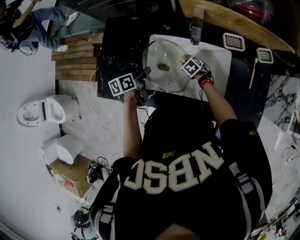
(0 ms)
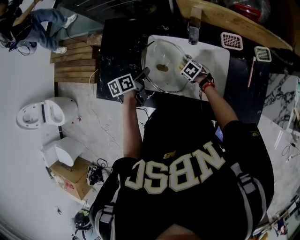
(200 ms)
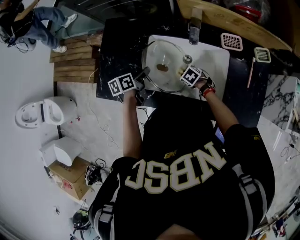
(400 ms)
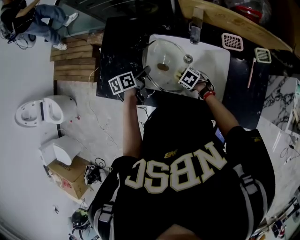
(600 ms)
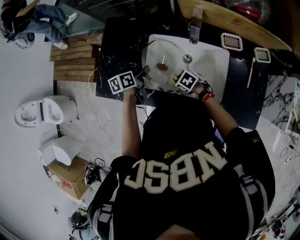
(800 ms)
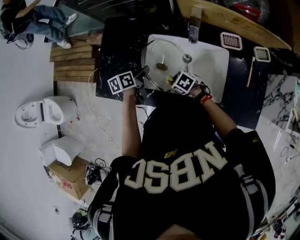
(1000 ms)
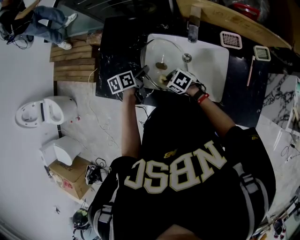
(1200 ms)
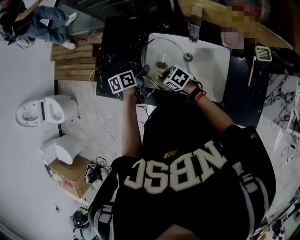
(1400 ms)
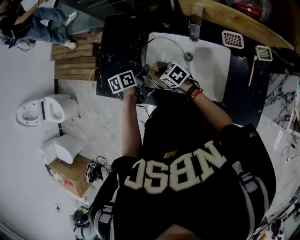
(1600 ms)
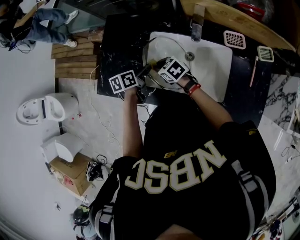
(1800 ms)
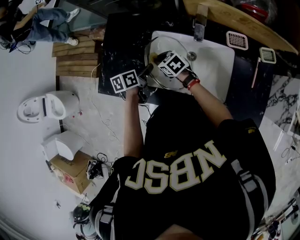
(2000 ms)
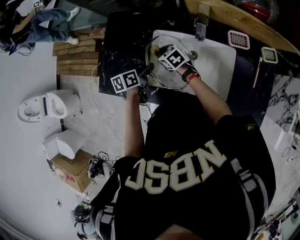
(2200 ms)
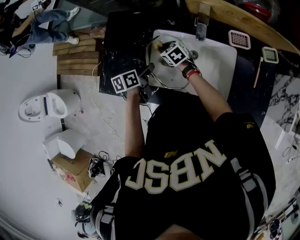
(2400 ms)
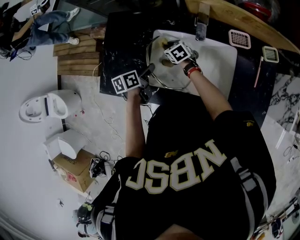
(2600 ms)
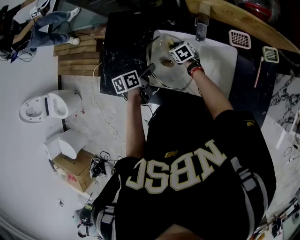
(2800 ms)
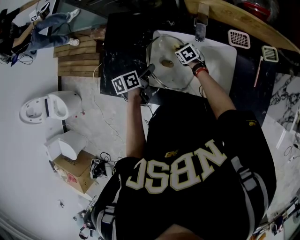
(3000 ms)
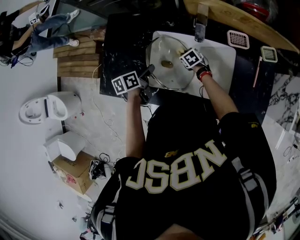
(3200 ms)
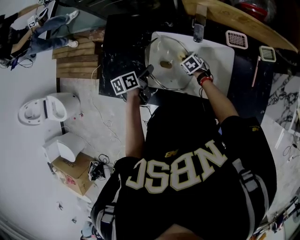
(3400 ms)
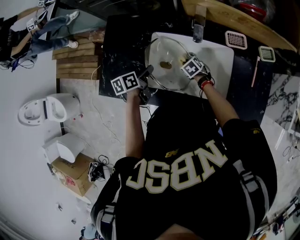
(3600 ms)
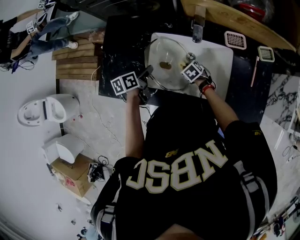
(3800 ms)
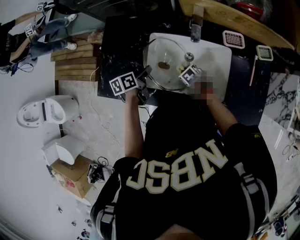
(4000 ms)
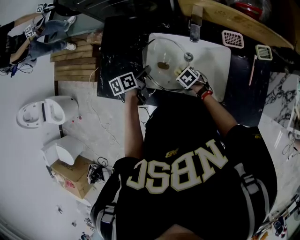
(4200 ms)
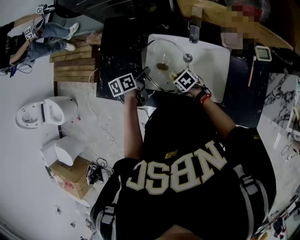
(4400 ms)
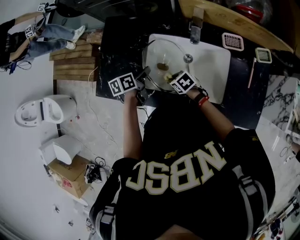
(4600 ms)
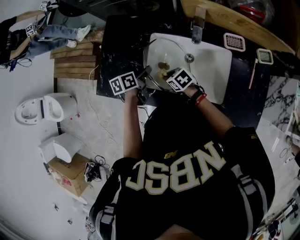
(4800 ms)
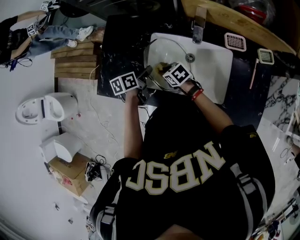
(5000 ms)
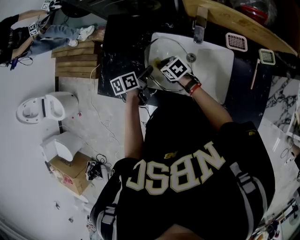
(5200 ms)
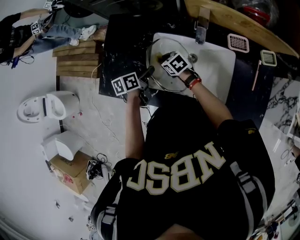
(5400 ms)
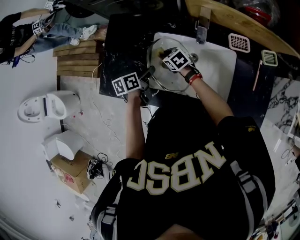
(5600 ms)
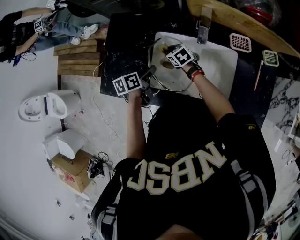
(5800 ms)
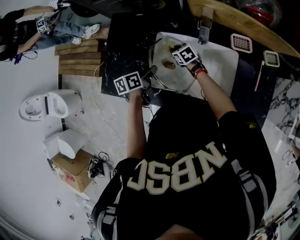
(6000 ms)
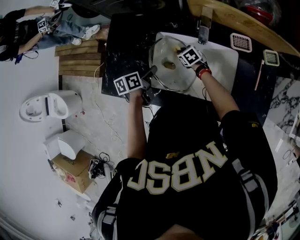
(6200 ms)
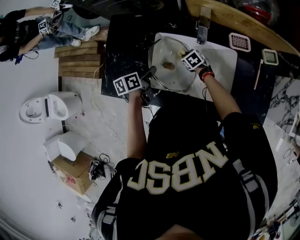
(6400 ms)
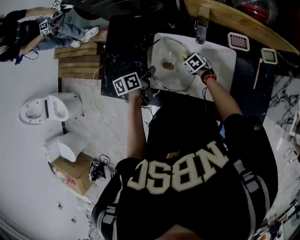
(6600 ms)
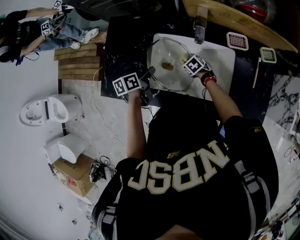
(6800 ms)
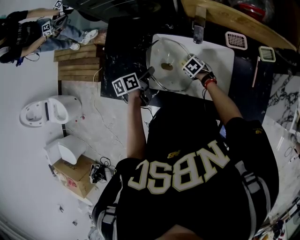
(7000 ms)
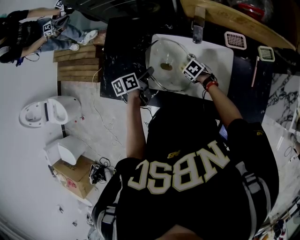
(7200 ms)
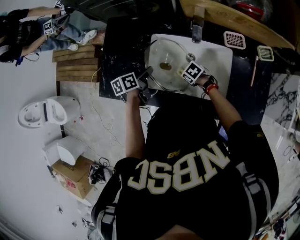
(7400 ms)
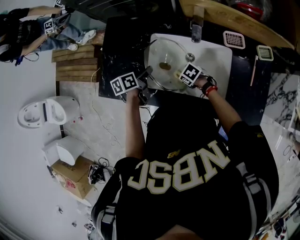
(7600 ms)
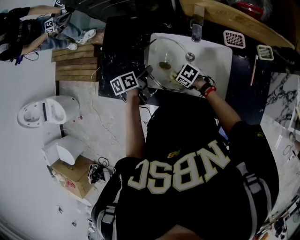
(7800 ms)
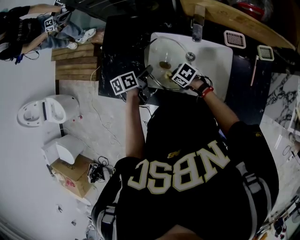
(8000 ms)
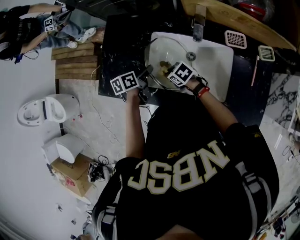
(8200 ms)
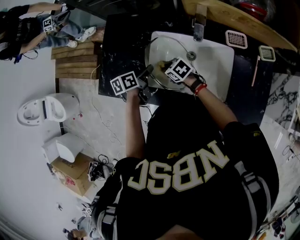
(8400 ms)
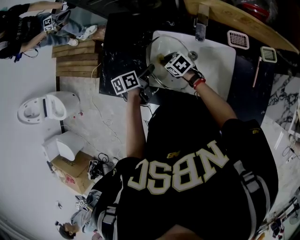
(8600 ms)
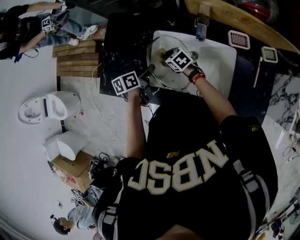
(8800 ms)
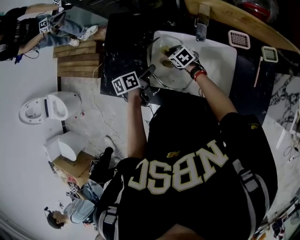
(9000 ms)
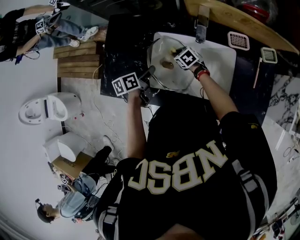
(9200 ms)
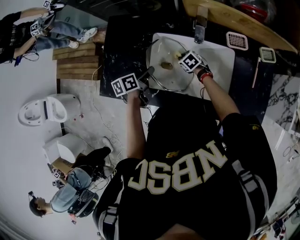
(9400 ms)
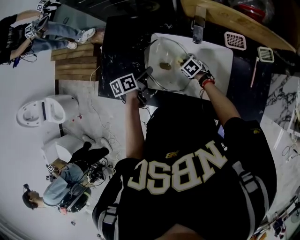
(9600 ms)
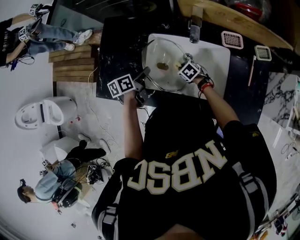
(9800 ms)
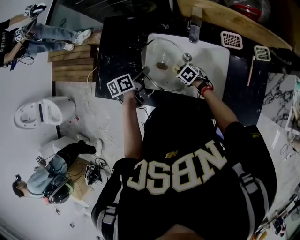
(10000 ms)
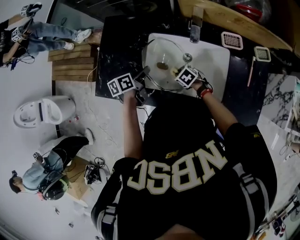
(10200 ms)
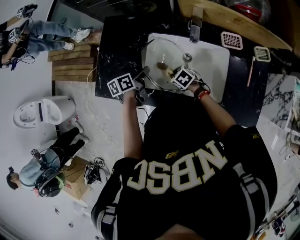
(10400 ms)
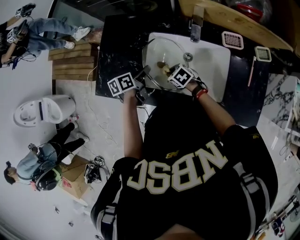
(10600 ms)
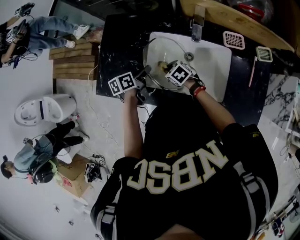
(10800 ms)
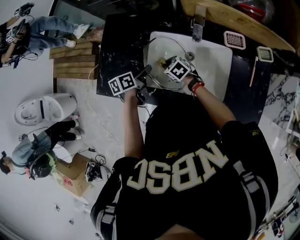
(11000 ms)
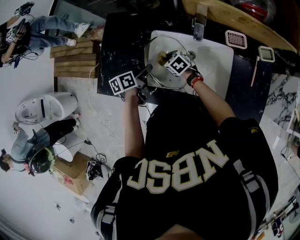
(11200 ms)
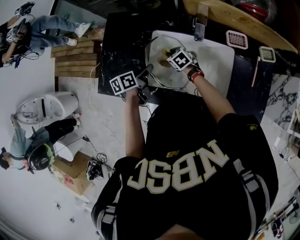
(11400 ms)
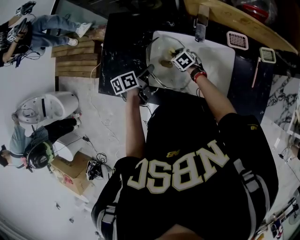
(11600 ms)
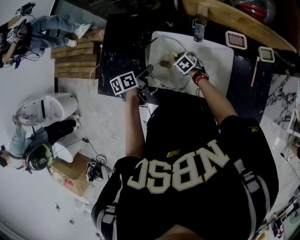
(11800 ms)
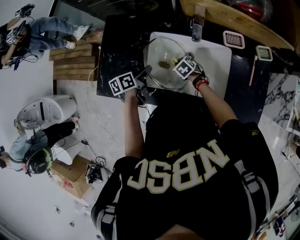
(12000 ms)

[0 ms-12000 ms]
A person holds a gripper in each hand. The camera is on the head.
0 ms to 1600 ms: The right gripper shifts by some 20 cm, and rotates approximately 30 degrees.
1600 ms to 3000 ms: The right gripper heads to the right, forward and downward, covering some 20 cm, and rotates some 20 degrees.
3000 ms to 4400 ms: The right gripper heads backward, covering about 15 cm.
4400 ms to 6000 ms: The right gripper goes about 15 cm forward.
6000 ms to 7600 ms: The right gripper changes place by about 15 cm, and rotates approximately 30 degrees.
7600 ms to 9000 ms: The right gripper moves approximately 15 cm, and rotates approximately 20 degrees.
9000 ms to 10400 ms: The right gripper is displaced backward by some 15 cm.
10400 ms to 12000 ms: The right gripper moves forward, roughly 5 cm.

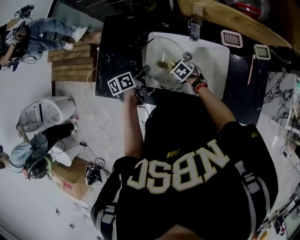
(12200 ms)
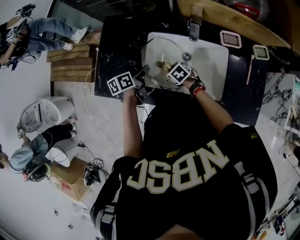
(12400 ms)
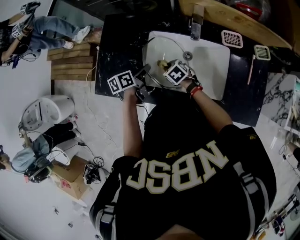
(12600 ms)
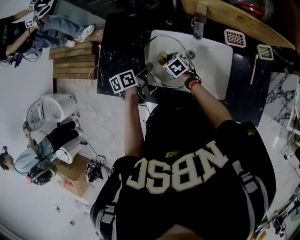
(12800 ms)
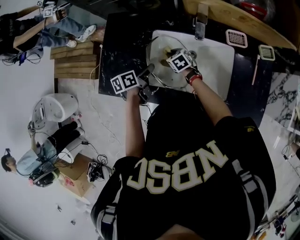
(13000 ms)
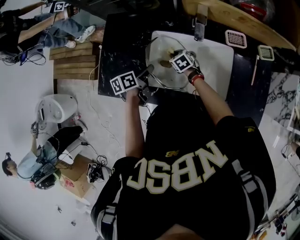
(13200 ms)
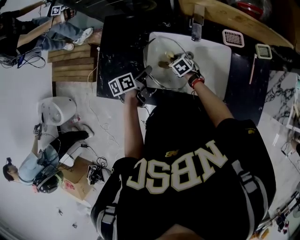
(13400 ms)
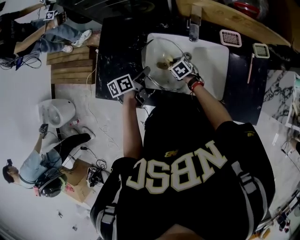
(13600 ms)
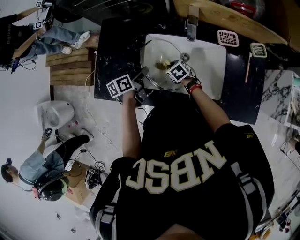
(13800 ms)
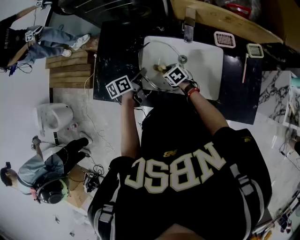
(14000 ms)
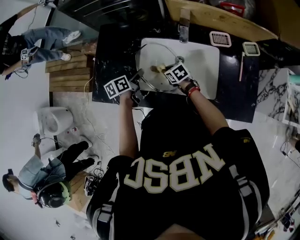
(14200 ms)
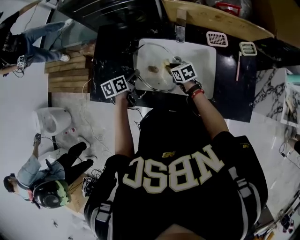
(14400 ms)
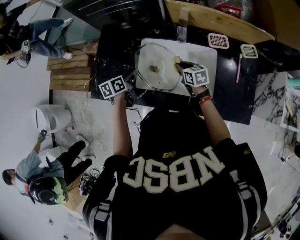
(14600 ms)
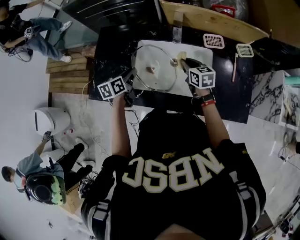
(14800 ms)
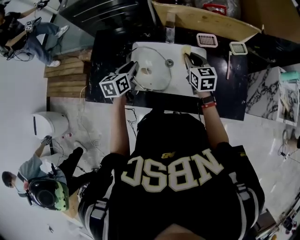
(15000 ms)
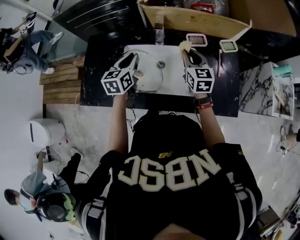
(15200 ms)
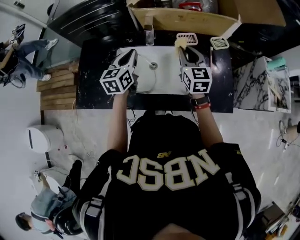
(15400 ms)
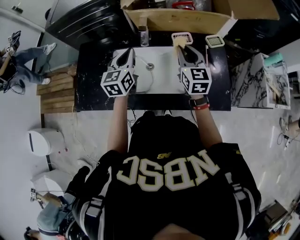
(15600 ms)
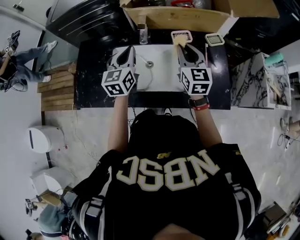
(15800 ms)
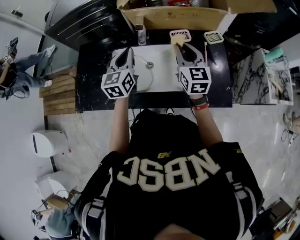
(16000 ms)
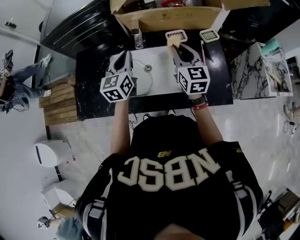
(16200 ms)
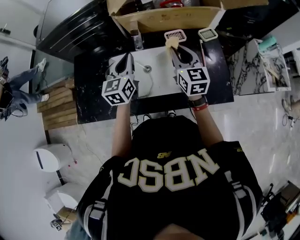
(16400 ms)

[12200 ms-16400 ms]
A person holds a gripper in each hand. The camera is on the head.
13600 ms to 15000 ms: The left gripper moves upward and to the right, approximately 10 cm, and swivels approximately 30 degrees, while the right gripper heads upward and to the right, covering roughly 30 cm, and angles its fingers upward, by approximately 30 degrees.
15000 ms to 16400 ms: The left gripper shifts some 15 cm to the right and upward, rotates some 30 degrees, and closes. The right gripper is displaced upward and to the right by approximately 15 cm.

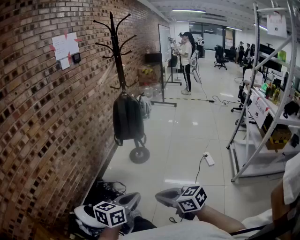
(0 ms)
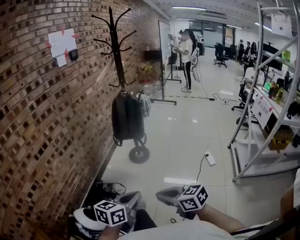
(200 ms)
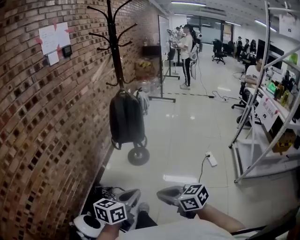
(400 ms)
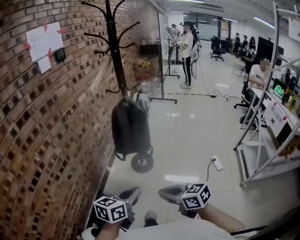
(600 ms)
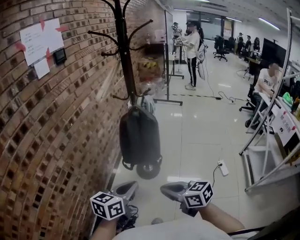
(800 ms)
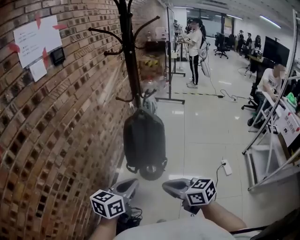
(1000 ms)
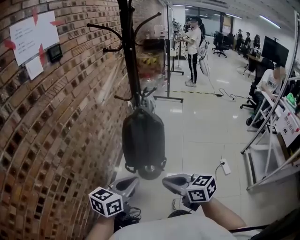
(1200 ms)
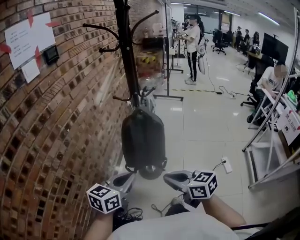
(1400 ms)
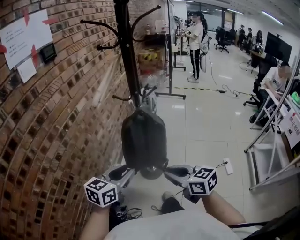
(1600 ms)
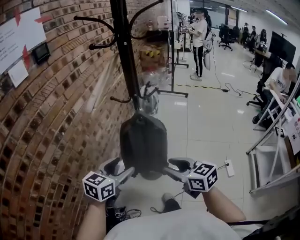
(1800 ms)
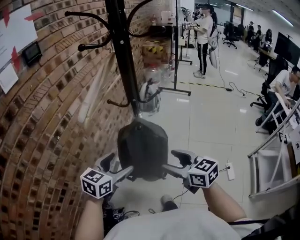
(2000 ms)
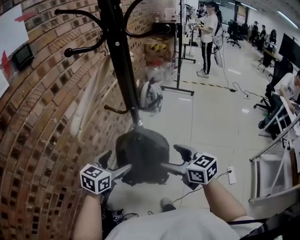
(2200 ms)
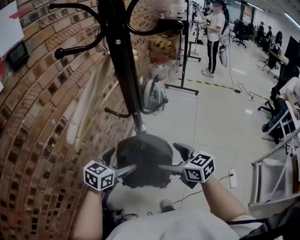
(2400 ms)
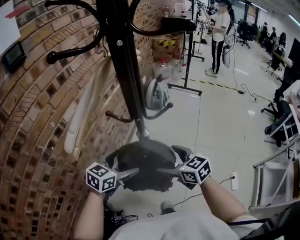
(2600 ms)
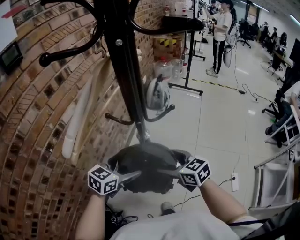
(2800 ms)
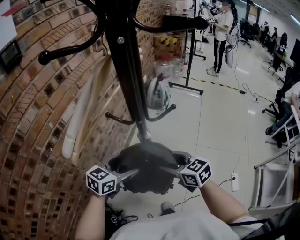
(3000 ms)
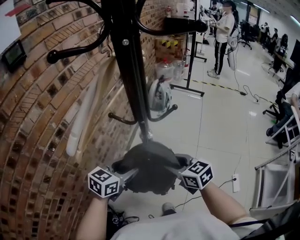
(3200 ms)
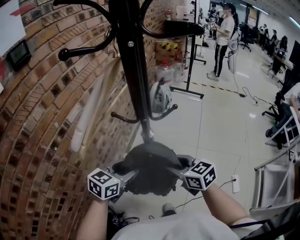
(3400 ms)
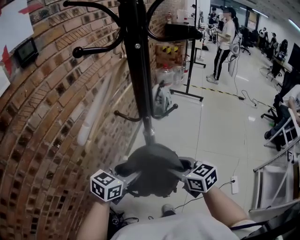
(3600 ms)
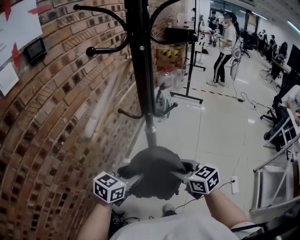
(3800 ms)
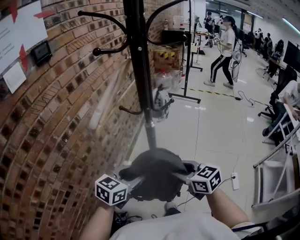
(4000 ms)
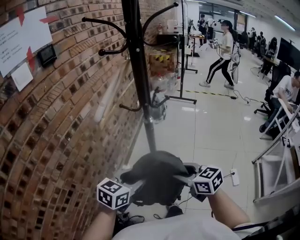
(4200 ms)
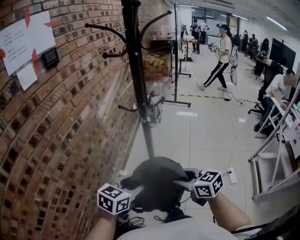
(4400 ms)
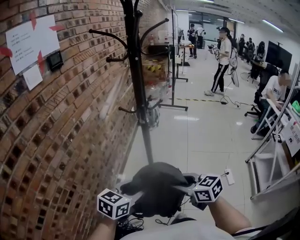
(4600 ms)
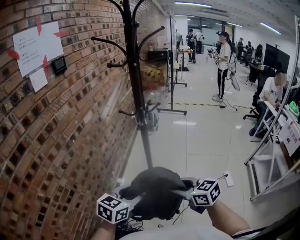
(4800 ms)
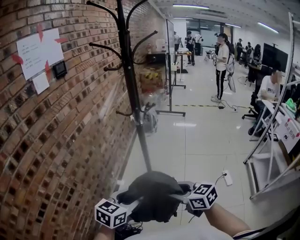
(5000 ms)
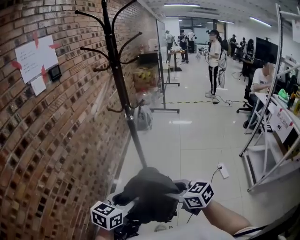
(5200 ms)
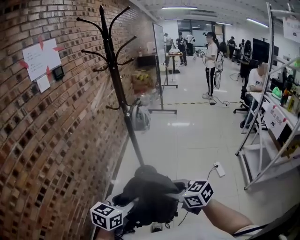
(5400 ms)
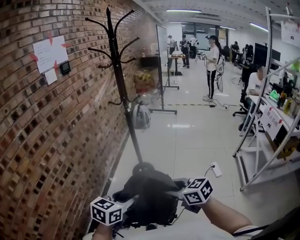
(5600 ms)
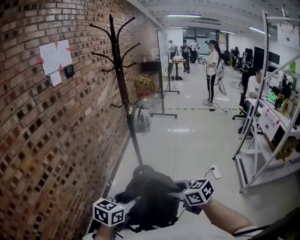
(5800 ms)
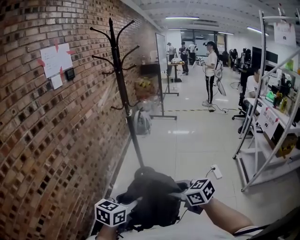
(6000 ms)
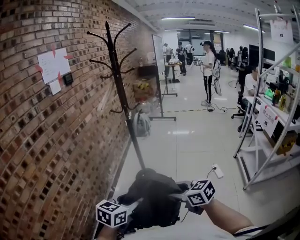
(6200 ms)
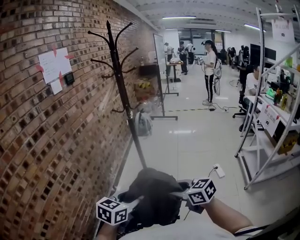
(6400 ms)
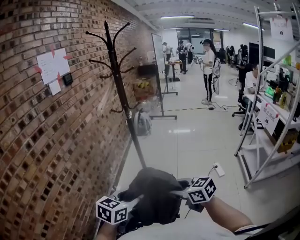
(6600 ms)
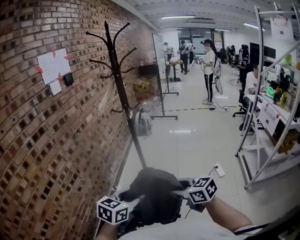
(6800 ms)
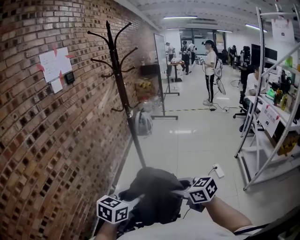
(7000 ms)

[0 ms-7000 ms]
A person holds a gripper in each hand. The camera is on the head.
0 ms to 1400 ms: The pair of grippers is taken forward, roughly 50 cm.
1400 ms to 2800 ms: Both grippers move forward, some 25 cm. The right gripper opens its fingers. The left gripper opens.
2800 ms to 4200 ms: The grippers both shift backward by some 20 cm. The left gripper closes its fingers. The right gripper closes its fingers.
4200 ms to 5600 ms: The grippers both shift backward by about 35 cm.
5600 ms to 7000 ms: The grippers stay close to where they were, moving slightly.
